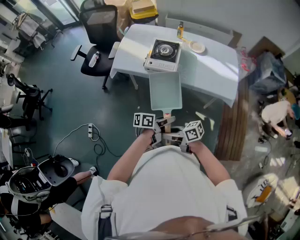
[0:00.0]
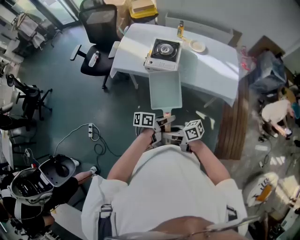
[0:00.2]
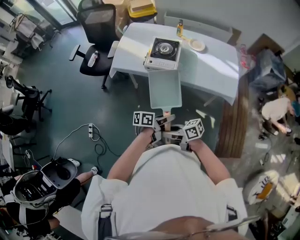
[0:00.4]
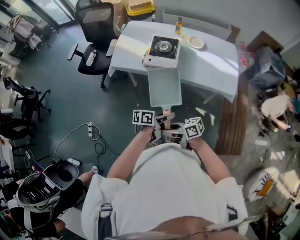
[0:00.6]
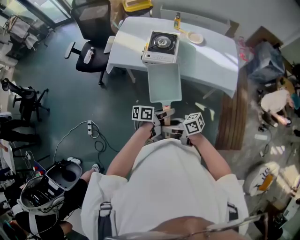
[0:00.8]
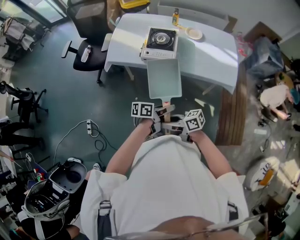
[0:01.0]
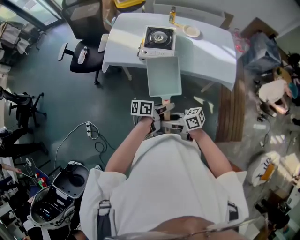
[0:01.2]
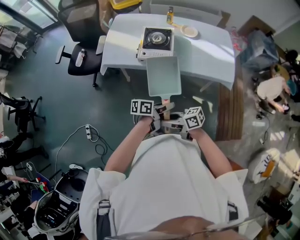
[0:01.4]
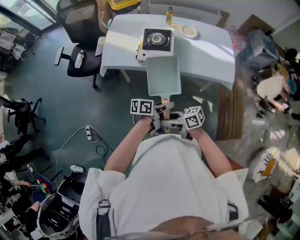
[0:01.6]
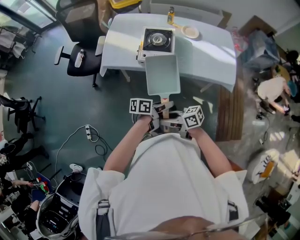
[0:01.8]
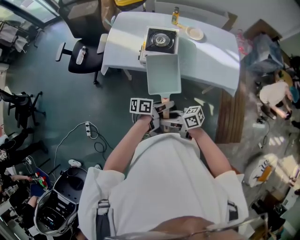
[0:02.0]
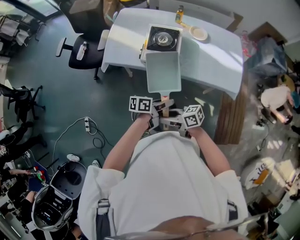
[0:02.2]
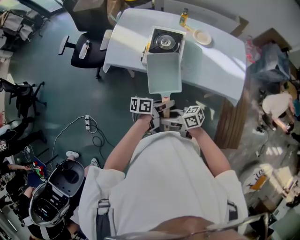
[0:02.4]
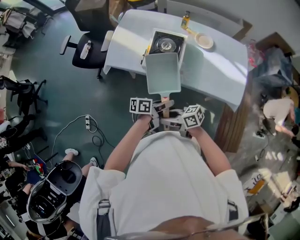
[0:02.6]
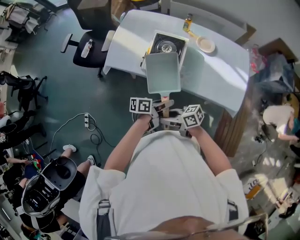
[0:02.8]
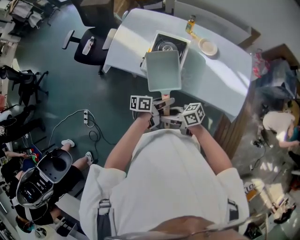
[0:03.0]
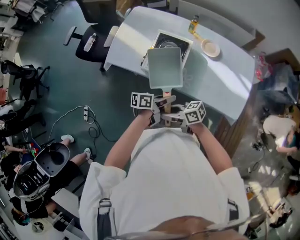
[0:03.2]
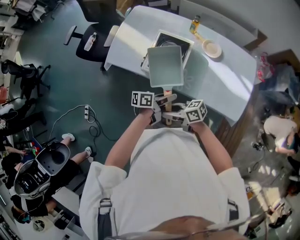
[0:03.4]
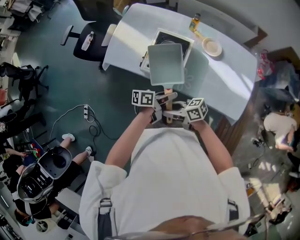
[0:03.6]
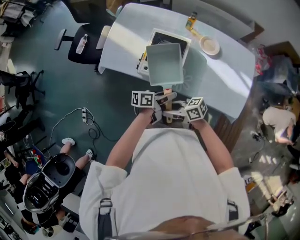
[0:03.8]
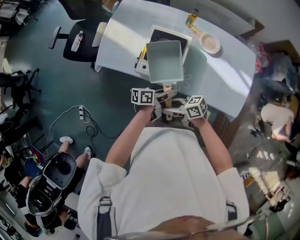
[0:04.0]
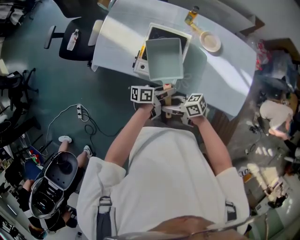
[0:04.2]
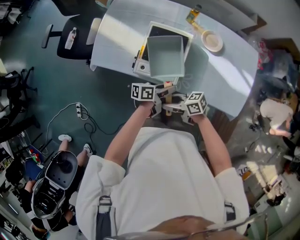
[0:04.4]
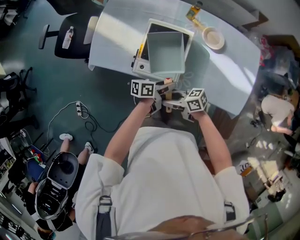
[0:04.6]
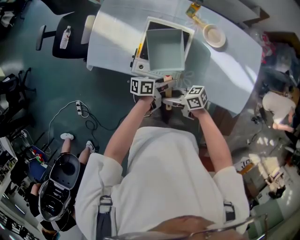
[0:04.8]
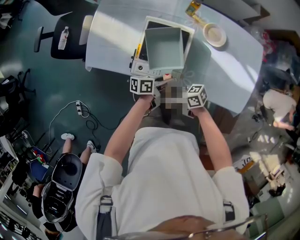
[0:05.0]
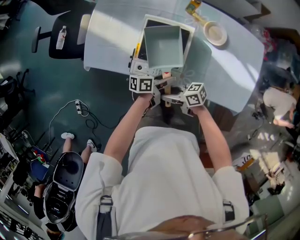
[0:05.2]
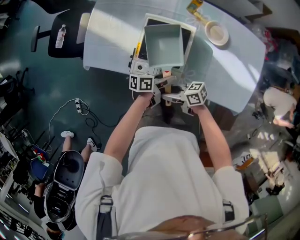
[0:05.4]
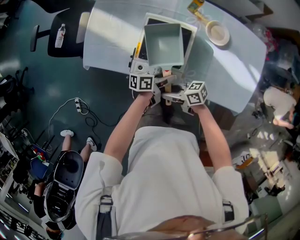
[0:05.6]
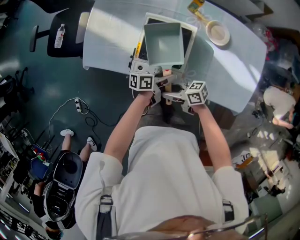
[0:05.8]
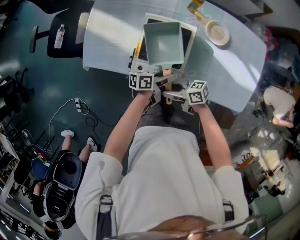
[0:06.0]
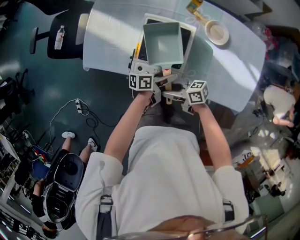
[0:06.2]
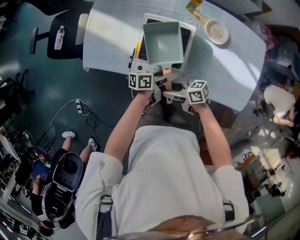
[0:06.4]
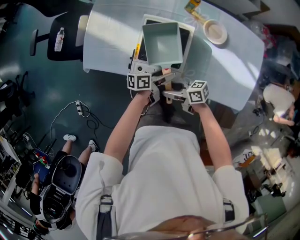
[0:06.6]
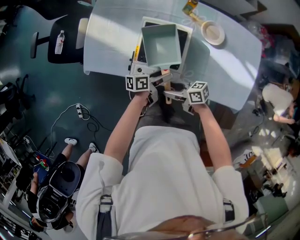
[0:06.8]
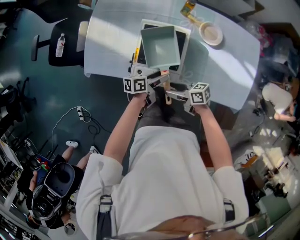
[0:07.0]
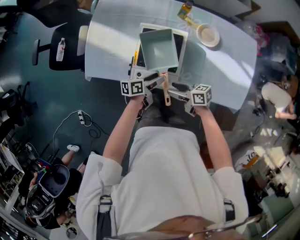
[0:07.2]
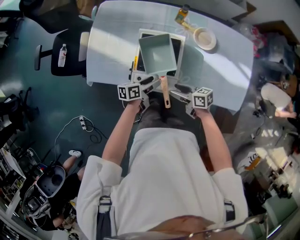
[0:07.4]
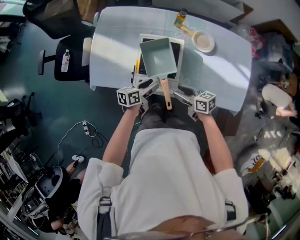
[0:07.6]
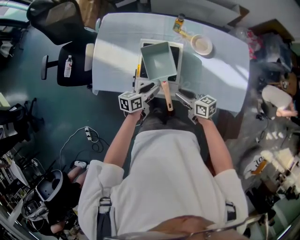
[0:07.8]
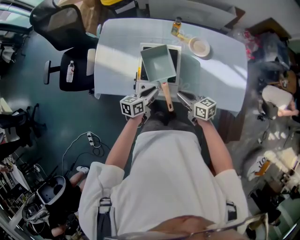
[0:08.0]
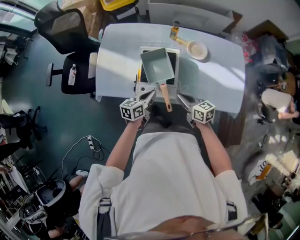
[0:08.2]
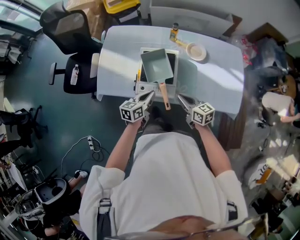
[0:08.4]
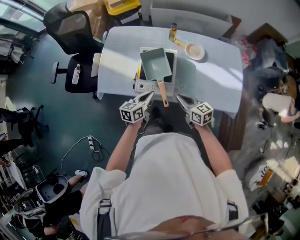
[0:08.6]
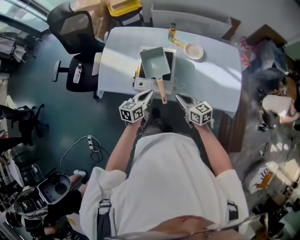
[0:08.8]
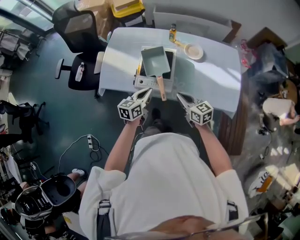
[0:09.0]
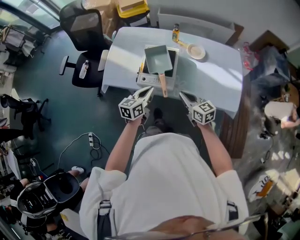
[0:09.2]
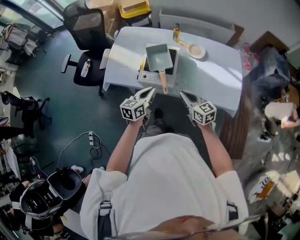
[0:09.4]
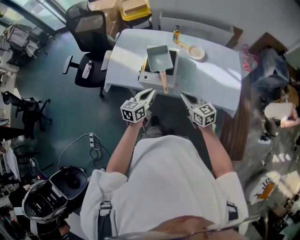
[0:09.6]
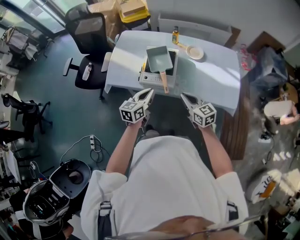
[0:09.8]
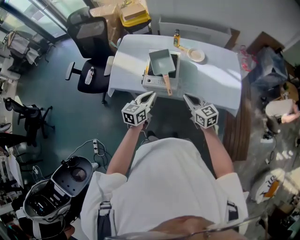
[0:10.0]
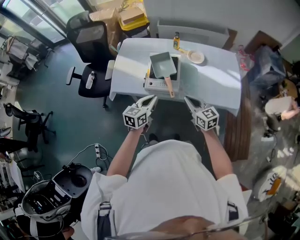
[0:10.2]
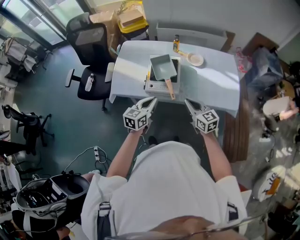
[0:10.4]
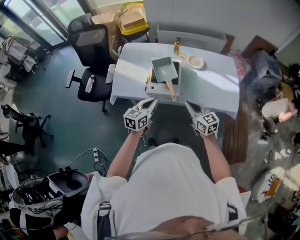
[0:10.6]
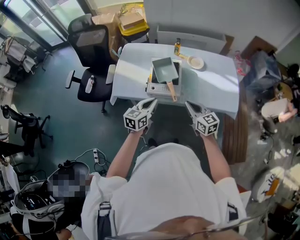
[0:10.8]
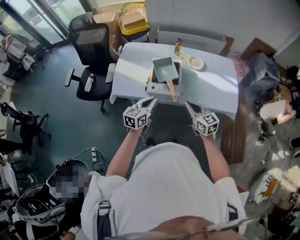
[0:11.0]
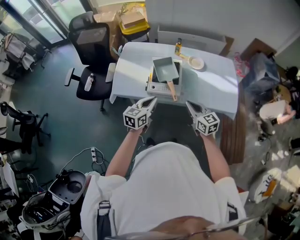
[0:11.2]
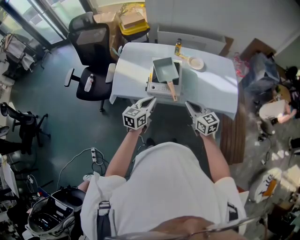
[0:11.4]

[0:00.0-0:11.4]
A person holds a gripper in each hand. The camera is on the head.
0:00.0 to 0:01.4: The right gripper ends up about 5 cm from where it was; the left gripper shifts by roughly 5 cm.
0:01.4 to 0:02.8: The left gripper shifts by about 15 cm; the right gripper moves about 15 cm.
0:02.8 to 0:04.2: The left gripper changes place by approximately 15 cm. The right gripper shifts by some 15 cm.
0:04.2 to 0:05.6: The left gripper heads downward, covering roughly 10 cm, while the right gripper changes place by some 10 cm.
0:05.6 to 0:07.2: The right gripper changes place by some 5 cm.
0:07.2 to 0:08.6: Both grippers move upward, roughly 10 cm. The left gripper turns by about 30 degrees, and closes up. Meanwhile the right gripper turns by about 40 degrees, and closes its fingers.
0:08.6 to 0:10.0: Both grippers move backward and upward, some 15 cm.
0:10.0 to 0:11.4: The right gripper shifts by some 5 cm, while the left gripper changes place by approximately 5 cm.

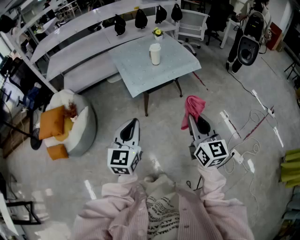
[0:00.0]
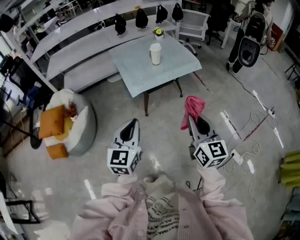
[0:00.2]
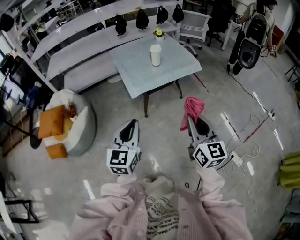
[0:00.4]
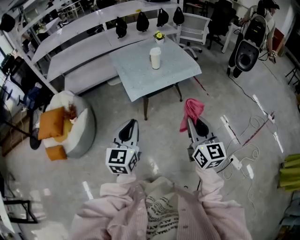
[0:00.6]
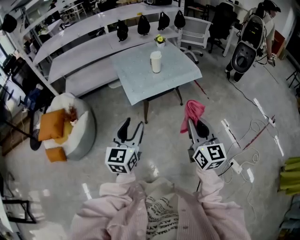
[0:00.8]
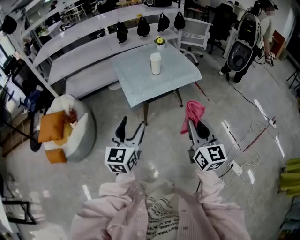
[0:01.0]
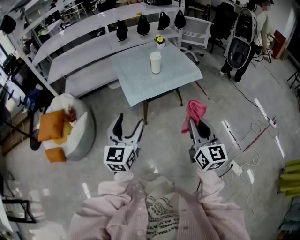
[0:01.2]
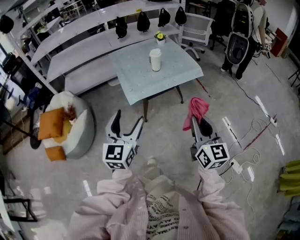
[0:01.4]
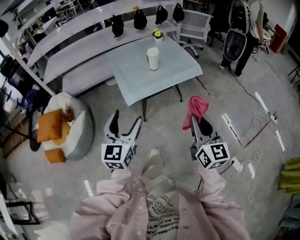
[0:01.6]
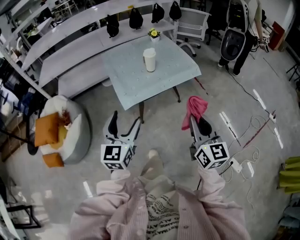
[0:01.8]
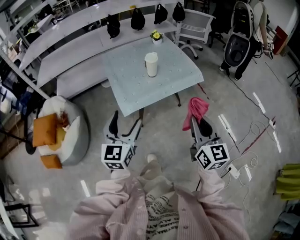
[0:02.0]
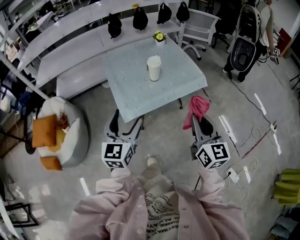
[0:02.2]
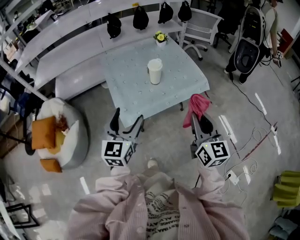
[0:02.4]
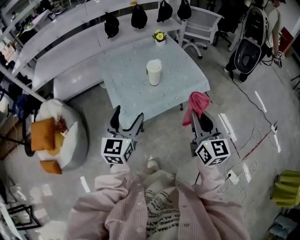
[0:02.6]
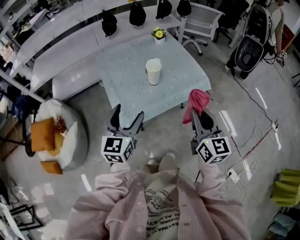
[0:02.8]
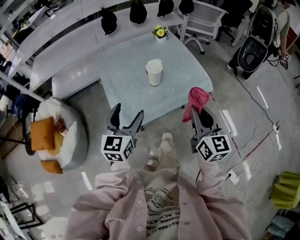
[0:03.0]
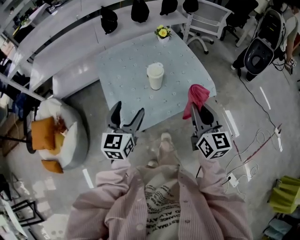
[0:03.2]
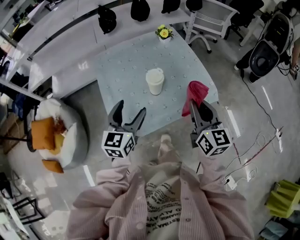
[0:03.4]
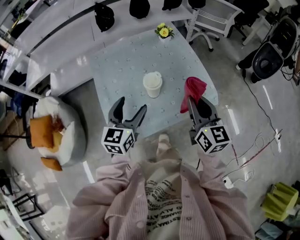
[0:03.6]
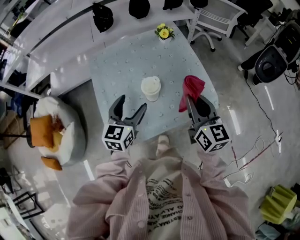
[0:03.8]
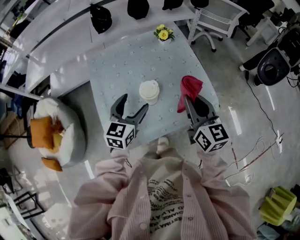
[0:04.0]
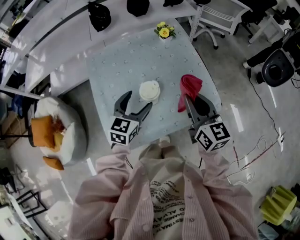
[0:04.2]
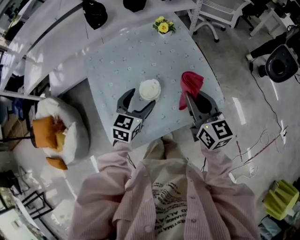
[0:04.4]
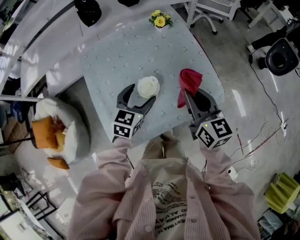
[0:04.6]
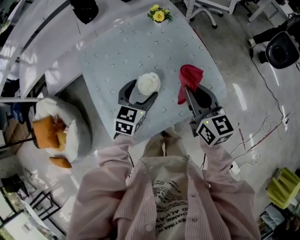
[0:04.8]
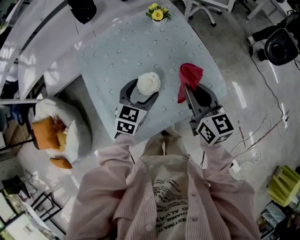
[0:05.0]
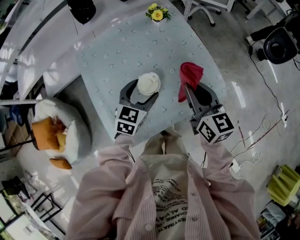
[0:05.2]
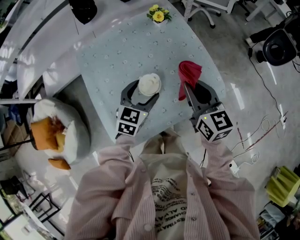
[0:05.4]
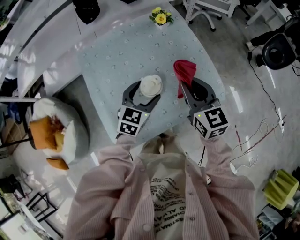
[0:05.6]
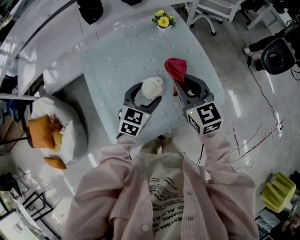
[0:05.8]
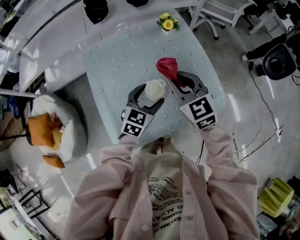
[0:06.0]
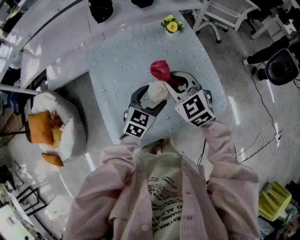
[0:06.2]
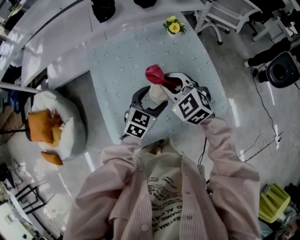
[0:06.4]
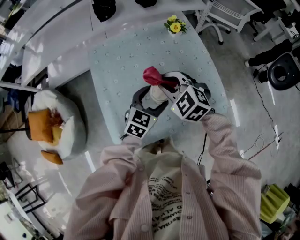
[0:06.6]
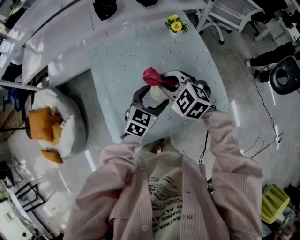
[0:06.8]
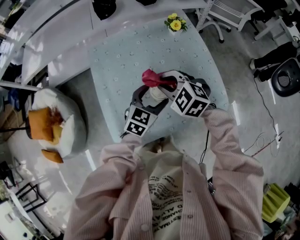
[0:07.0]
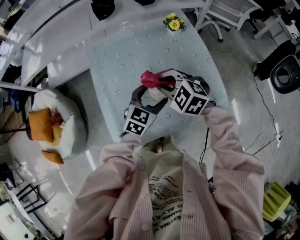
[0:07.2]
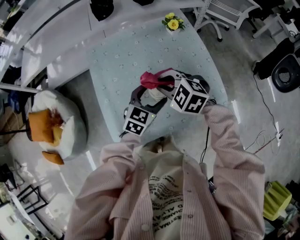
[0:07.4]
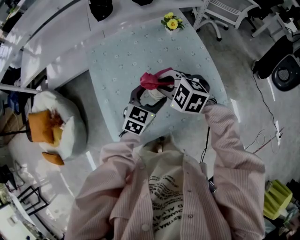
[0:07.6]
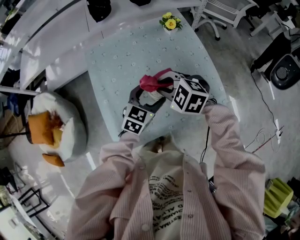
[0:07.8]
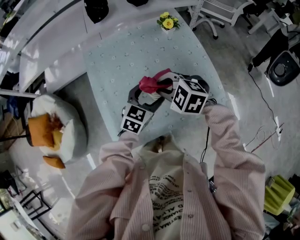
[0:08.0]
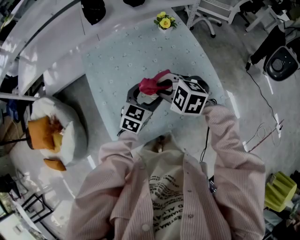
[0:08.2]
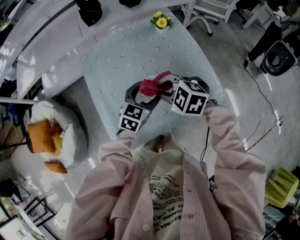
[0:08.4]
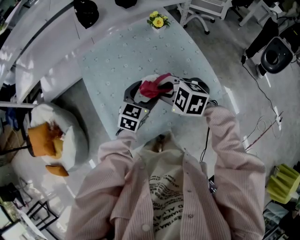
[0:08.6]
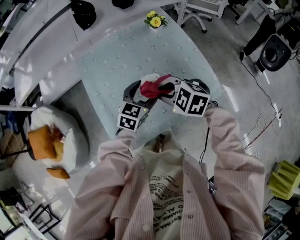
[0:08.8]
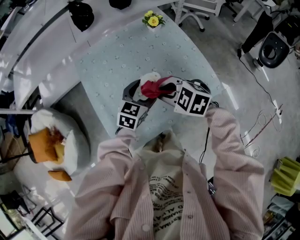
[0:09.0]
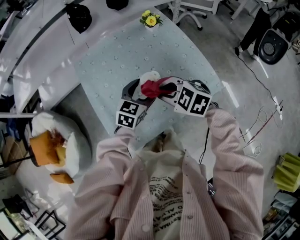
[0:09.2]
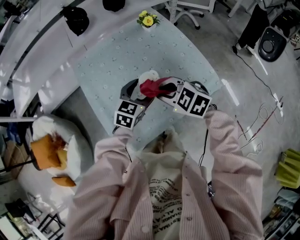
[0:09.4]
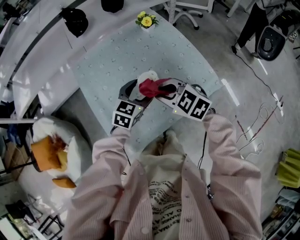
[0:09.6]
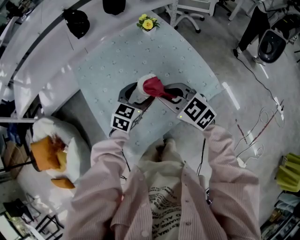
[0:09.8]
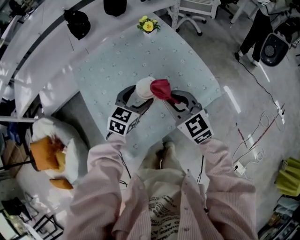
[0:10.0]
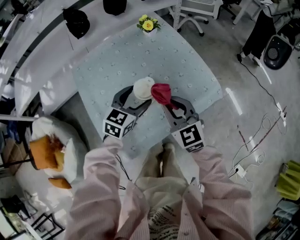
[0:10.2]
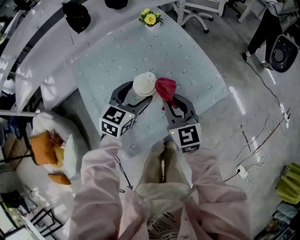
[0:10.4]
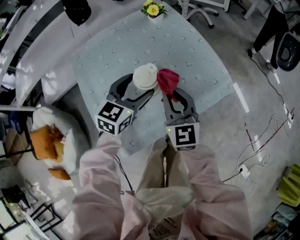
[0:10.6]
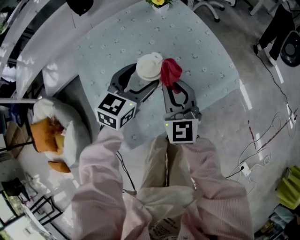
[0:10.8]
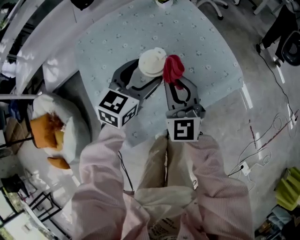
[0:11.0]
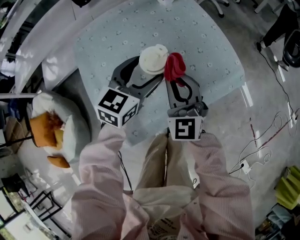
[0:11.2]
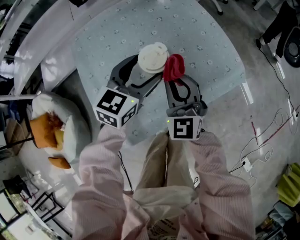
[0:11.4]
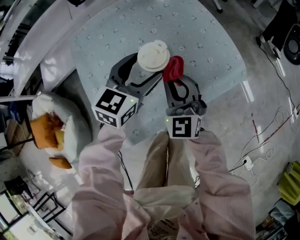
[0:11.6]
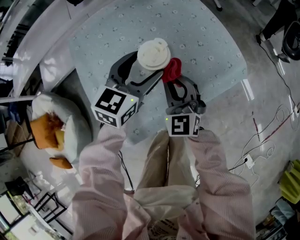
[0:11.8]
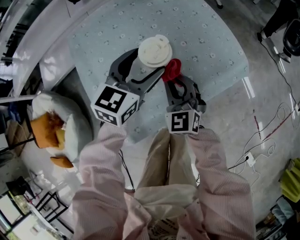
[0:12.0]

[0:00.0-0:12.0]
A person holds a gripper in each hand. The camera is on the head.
0:00.0 to 0:01.6: Both grippers move forward, roughly 10 cm. The left gripper opens up.
0:01.6 to 0:03.0: The grippers both shift forward by about 30 cm.
0:03.0 to 0:04.4: The left gripper moves forward and downward, roughly 25 cm, and swivels approximately 20 degrees, while the right gripper heads forward, covering approximately 25 cm.
0:04.4 to 0:06.0: The right gripper is displaced to the left and forward by roughly 10 cm, and changes its angle by roughly 30 degrees.
0:06.0 to 0:07.6: The right gripper heads to the left and downward, covering some 10 cm, and turns by about 40 degrees.
0:07.6 to 0:09.0: The right gripper is displaced backward by some 5 cm.
0:09.0 to 0:10.4: The right gripper ends up roughly 5 cm from where it was, and tilts its fingers about 30 degrees upward.
0:10.4 to 0:12.0: The right gripper heads downward, covering some 10 cm, and rotates about 20 degrees.
